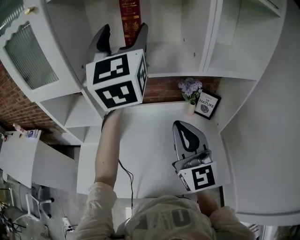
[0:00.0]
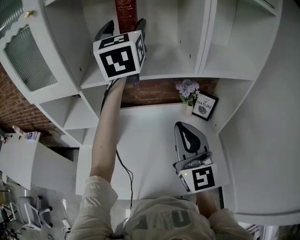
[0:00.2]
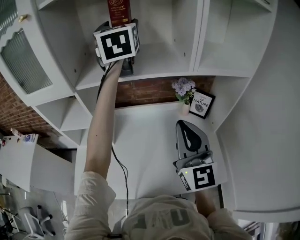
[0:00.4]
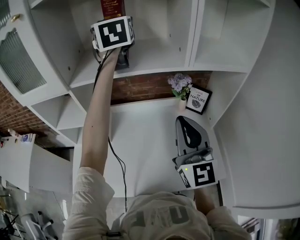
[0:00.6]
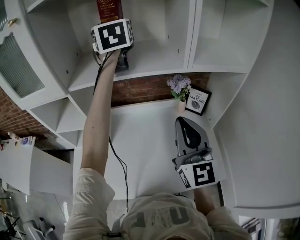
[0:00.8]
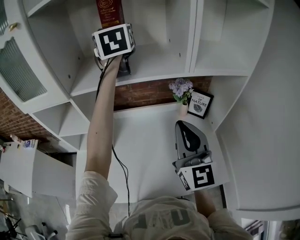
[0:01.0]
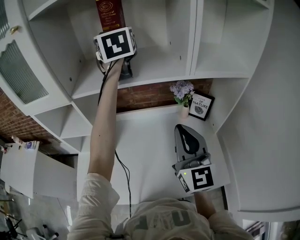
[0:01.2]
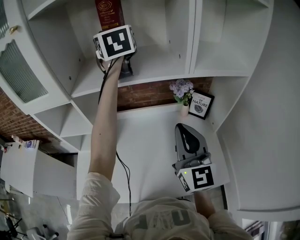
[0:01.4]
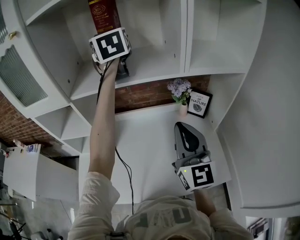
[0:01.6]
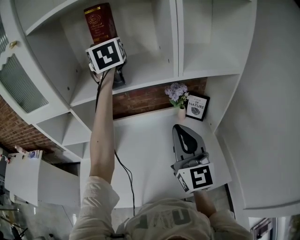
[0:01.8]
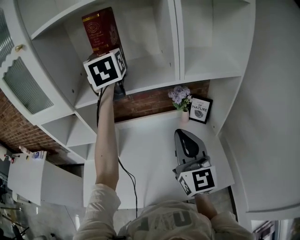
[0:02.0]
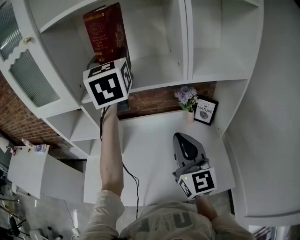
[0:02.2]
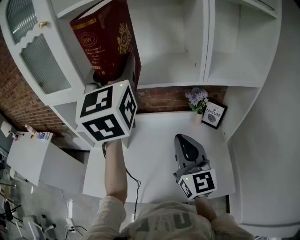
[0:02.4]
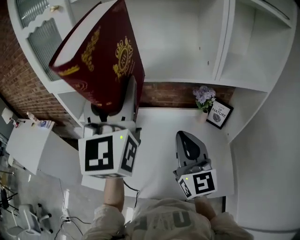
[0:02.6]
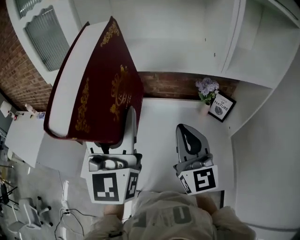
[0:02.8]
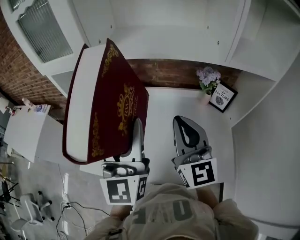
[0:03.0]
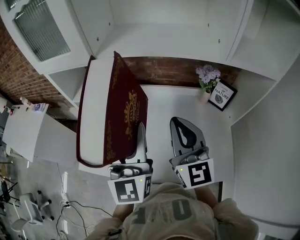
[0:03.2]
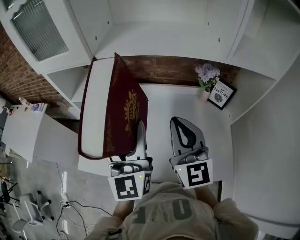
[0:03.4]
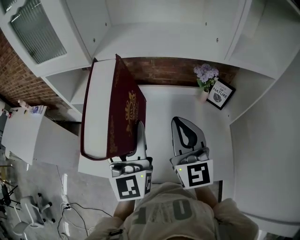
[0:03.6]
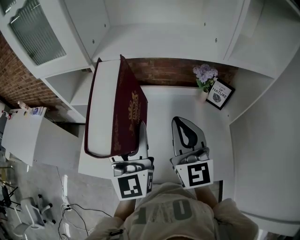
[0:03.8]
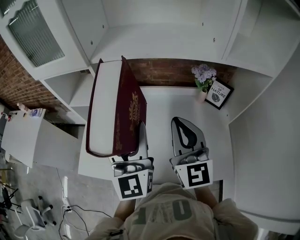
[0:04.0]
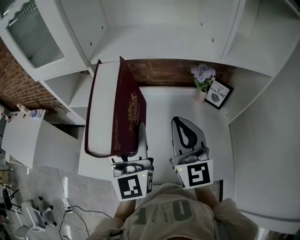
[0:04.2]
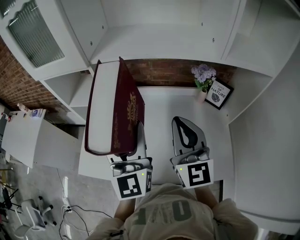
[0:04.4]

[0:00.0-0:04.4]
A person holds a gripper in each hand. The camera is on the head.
0.0 to 1.4 s: The left gripper moves forward, about 15 cm, and rotates approximately 20 degrees, while the right gripper ends up approximately 5 cm from where it was.
1.4 to 3.0 s: The right gripper travels to the left by some 10 cm; the left gripper shifts roughly 35 cm backward and downward.
3.0 to 4.4 s: The left gripper goes roughly 5 cm downward.

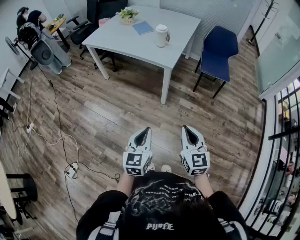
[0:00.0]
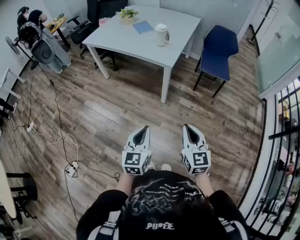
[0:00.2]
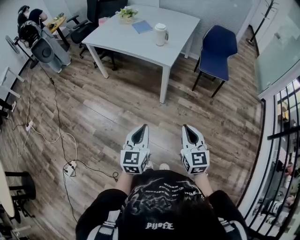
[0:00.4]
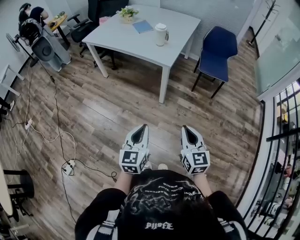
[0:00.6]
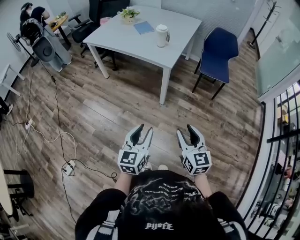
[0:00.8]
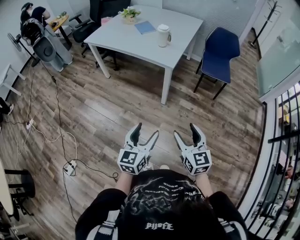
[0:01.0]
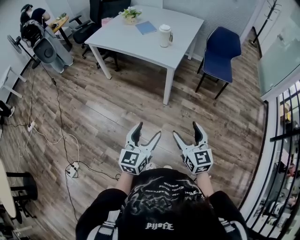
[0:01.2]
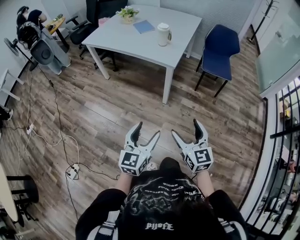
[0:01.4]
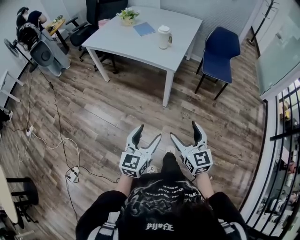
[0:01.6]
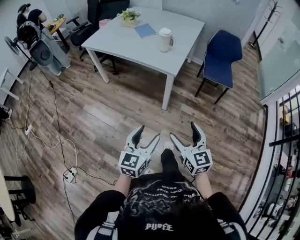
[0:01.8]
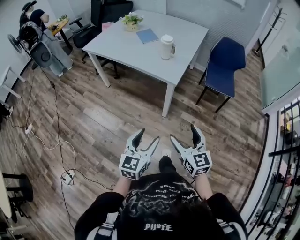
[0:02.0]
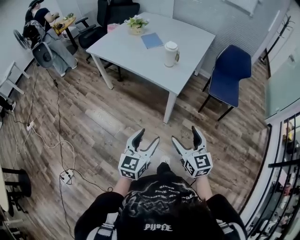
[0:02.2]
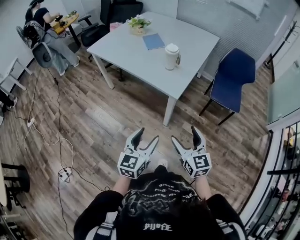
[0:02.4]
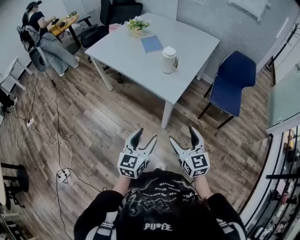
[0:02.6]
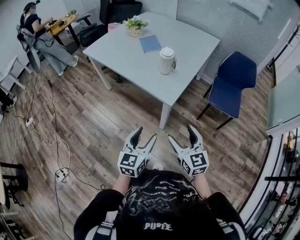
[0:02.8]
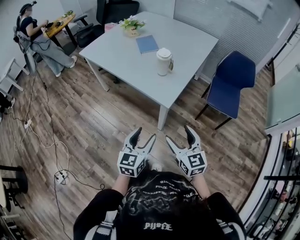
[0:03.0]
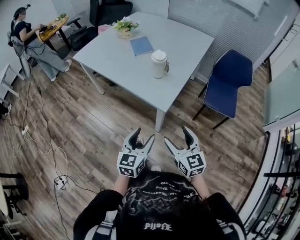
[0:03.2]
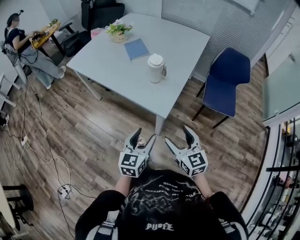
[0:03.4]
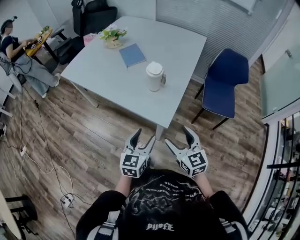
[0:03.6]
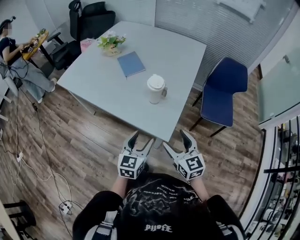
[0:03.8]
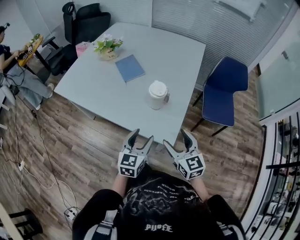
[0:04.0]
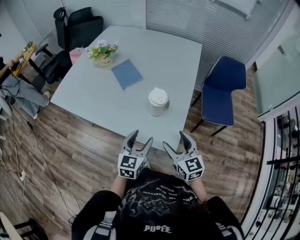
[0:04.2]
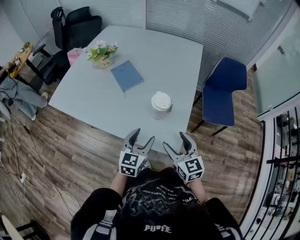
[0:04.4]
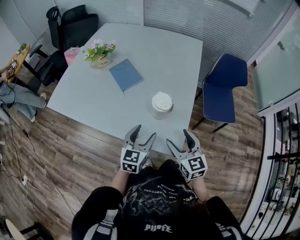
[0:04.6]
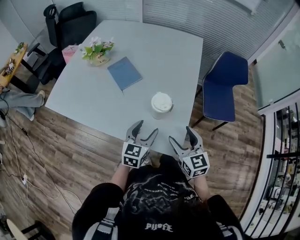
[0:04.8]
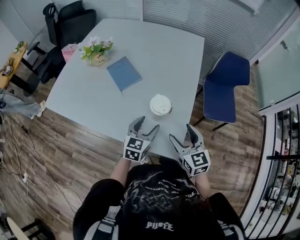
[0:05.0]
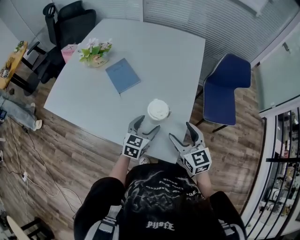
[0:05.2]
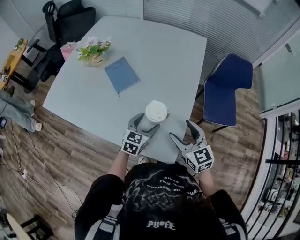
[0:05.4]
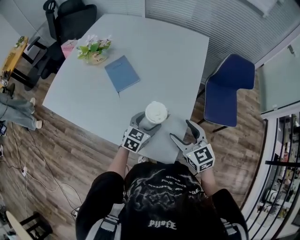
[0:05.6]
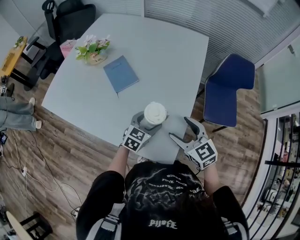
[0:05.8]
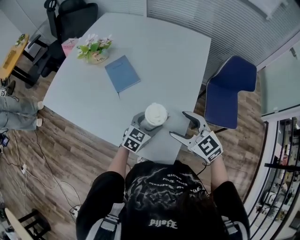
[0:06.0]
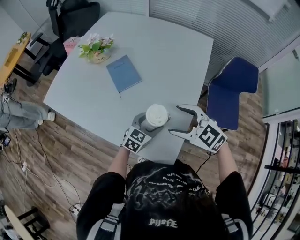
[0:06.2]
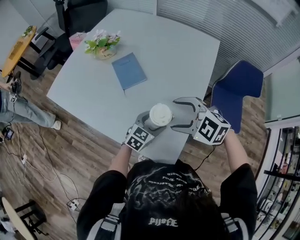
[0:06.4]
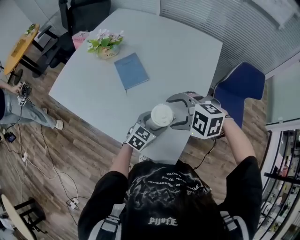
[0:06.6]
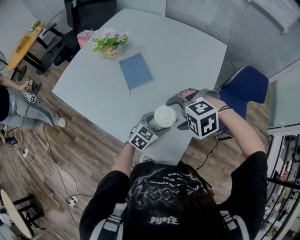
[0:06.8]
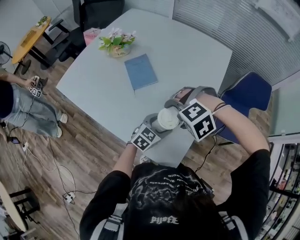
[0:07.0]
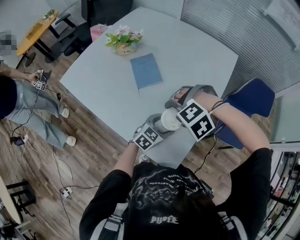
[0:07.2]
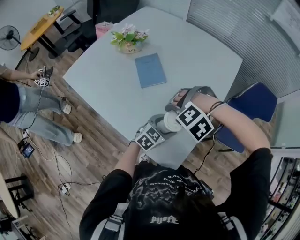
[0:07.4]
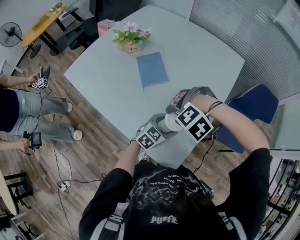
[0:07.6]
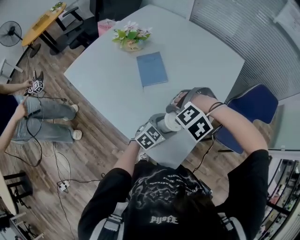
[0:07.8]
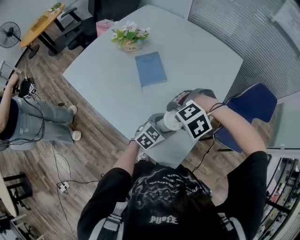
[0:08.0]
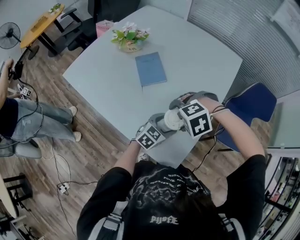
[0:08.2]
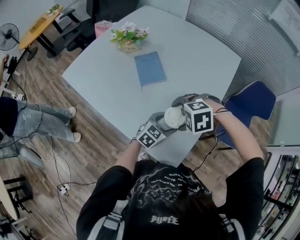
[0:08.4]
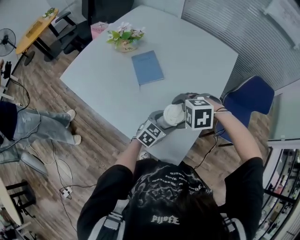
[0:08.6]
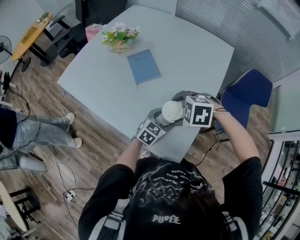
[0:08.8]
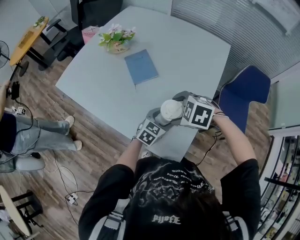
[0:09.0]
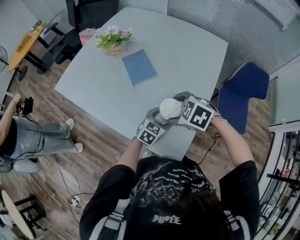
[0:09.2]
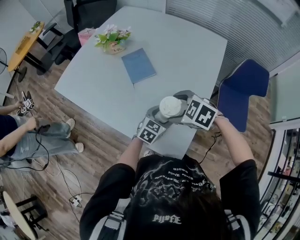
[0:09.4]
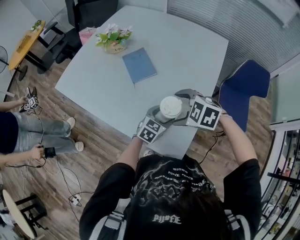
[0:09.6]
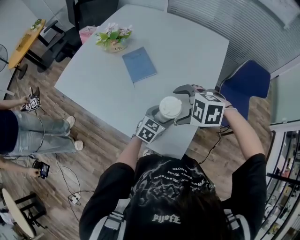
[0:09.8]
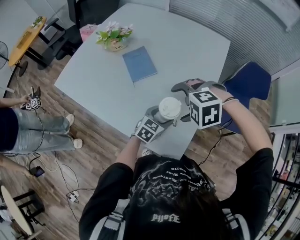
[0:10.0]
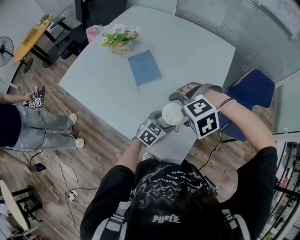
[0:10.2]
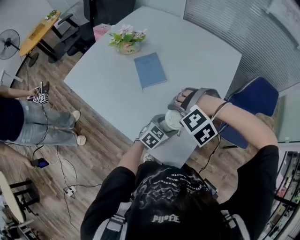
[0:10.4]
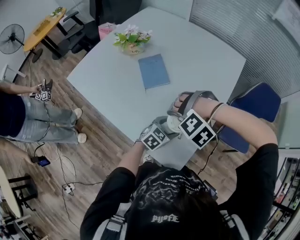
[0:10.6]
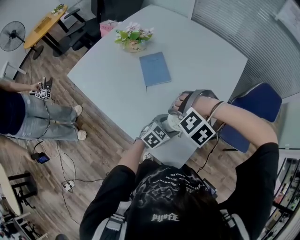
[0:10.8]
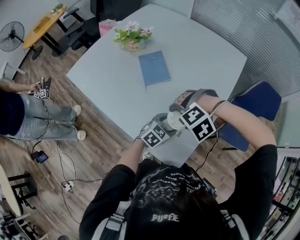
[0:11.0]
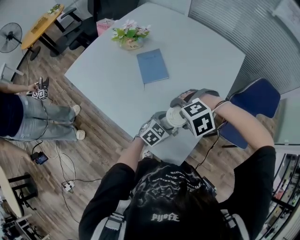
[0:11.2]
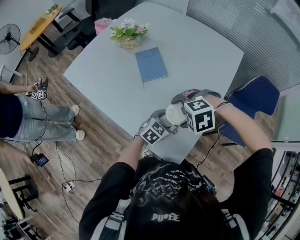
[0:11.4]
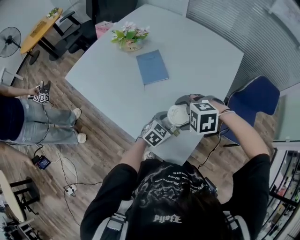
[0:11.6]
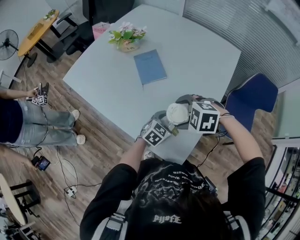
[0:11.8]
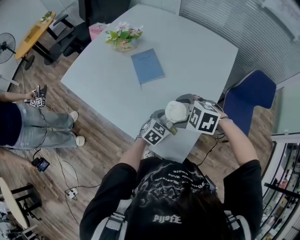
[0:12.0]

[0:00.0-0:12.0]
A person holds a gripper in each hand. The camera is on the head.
0.0 to 1.6 s: The right gripper moves roughly 5 cm, and opens. The left gripper opens its fingers.
1.6 to 3.0 s: The grippers both shift forward by about 30 cm.
3.0 to 4.4 s: Both grippers move forward, roughly 35 cm. The left gripper swivels roughly 20 degrees.
4.4 to 6.0 s: The left gripper goes approximately 20 cm forward, downward and to the right. The right gripper is displaced forward by roughly 15 cm, and swivels some 30 degrees.
6.0 to 7.6 s: The right gripper shifts by about 10 cm, and points its fingers about 60 degrees further downward.
7.6 to 9.0 s: The right gripper rotates around the line of its fingers by approximately 60 degrees, clockwise from behind.
9.0 to 10.4 s: The right gripper rolls counterclockwise, seen from behind, by roughly 60 degrees.
10.4 to 12.0 s: The right gripper twists roughly 50 degrees clockwise, seen from behind.

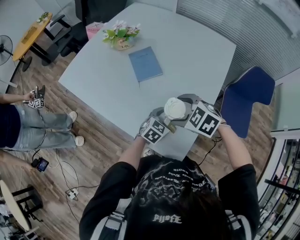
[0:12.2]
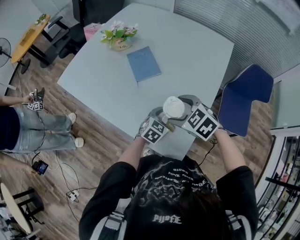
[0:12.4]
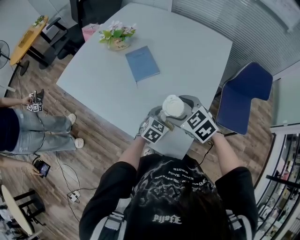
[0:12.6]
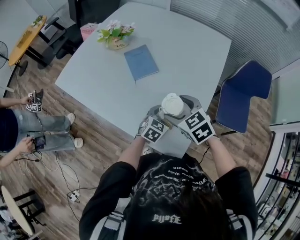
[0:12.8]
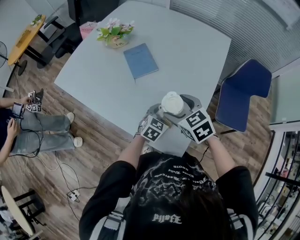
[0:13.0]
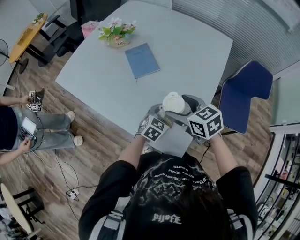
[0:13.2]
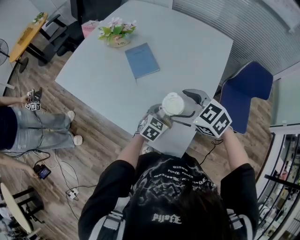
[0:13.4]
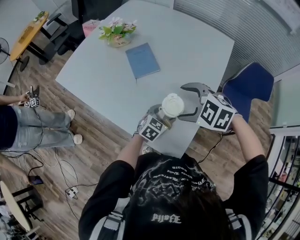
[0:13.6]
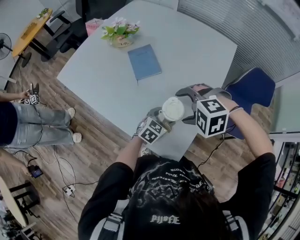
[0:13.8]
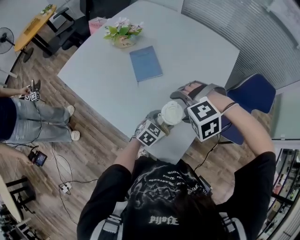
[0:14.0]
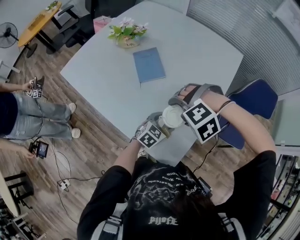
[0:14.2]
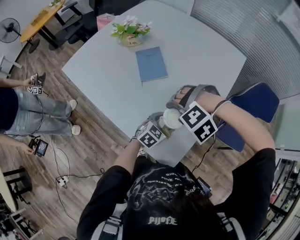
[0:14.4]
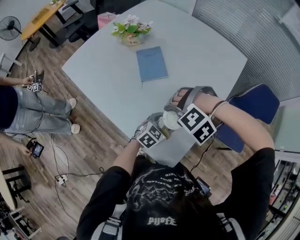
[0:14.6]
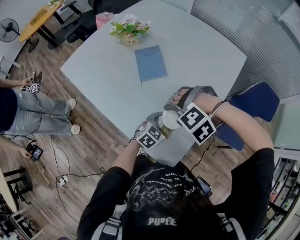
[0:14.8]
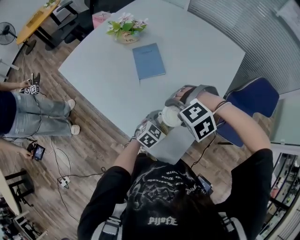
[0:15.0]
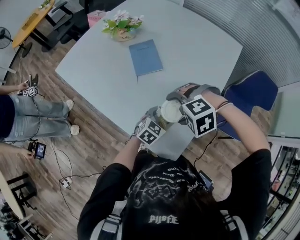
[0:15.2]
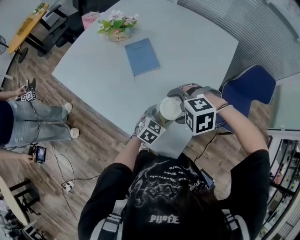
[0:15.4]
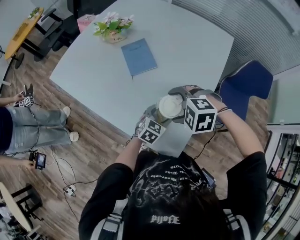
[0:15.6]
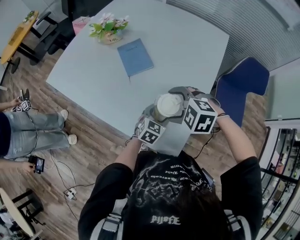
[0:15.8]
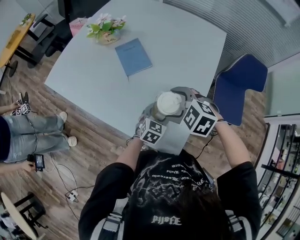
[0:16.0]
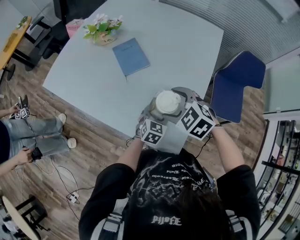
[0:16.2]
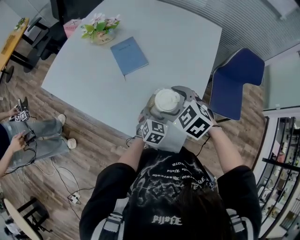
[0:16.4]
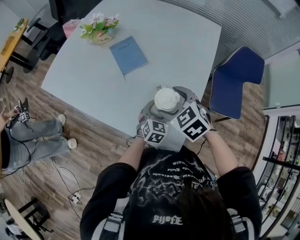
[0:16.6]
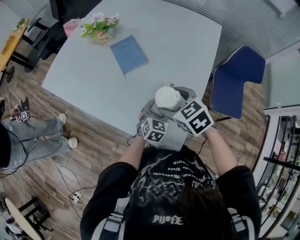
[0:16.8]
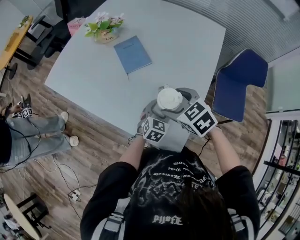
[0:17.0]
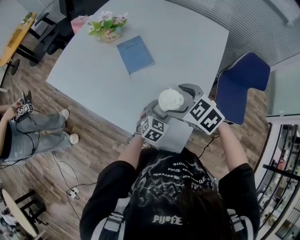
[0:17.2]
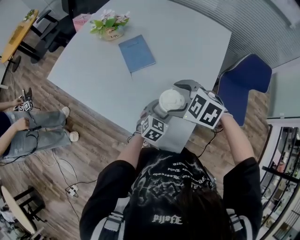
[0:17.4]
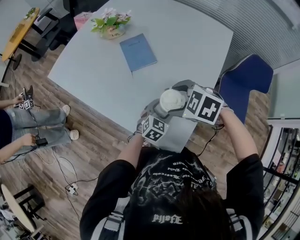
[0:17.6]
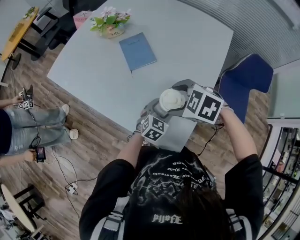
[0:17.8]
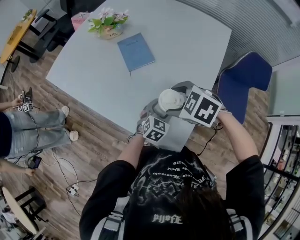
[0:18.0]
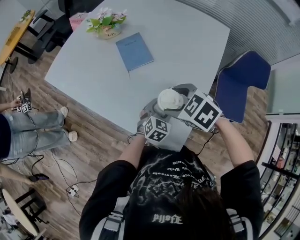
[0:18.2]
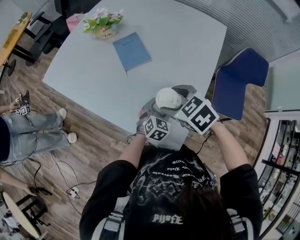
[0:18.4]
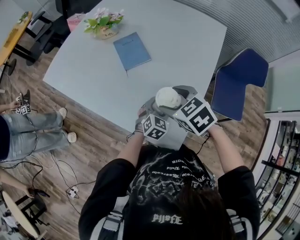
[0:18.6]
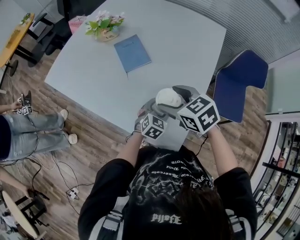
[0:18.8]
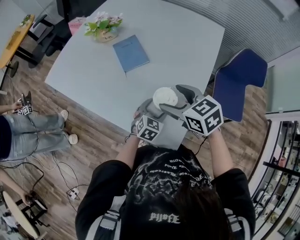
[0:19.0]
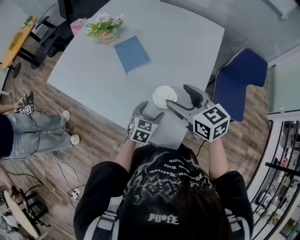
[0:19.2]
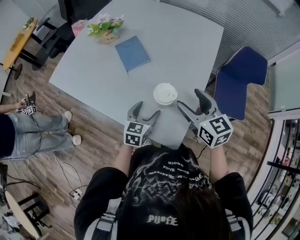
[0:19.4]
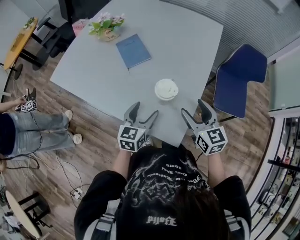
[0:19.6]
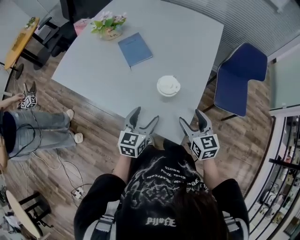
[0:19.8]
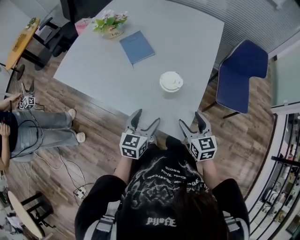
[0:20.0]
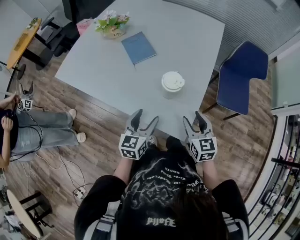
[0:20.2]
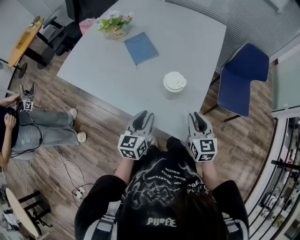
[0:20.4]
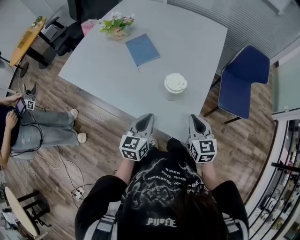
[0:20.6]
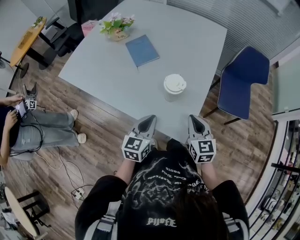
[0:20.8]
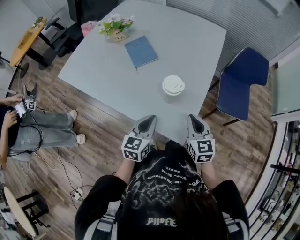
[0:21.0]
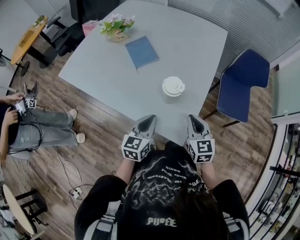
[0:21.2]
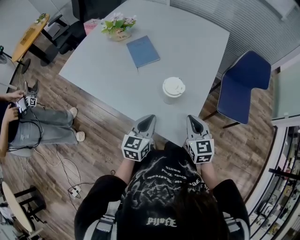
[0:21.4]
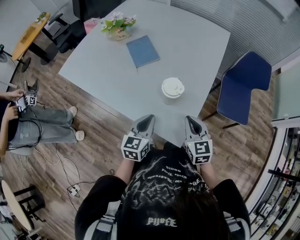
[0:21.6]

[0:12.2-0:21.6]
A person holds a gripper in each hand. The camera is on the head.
12.2 to 13.8 s: The right gripper swivels approximately 40 degrees.
15.4 to 17.0 s: The right gripper rolls clockwise, seen from behind, by approximately 60 degrees.
18.4 to 20.0 s: The left gripper goes some 20 cm backward, to the left and upward, and changes its angle by about 30 degrees, while the right gripper goes about 20 cm backward, to the right and downward, and swivels some 40 degrees.
20.0 to 21.6 s: The left gripper closes up; the right gripper closes its fingers.
